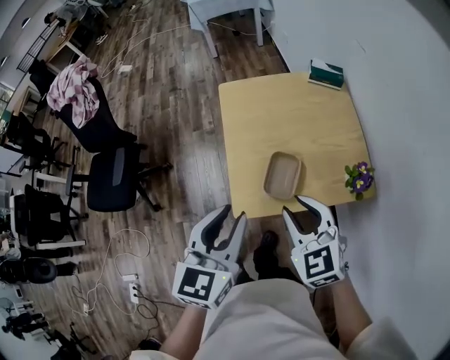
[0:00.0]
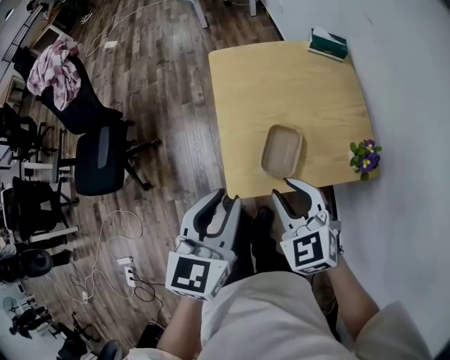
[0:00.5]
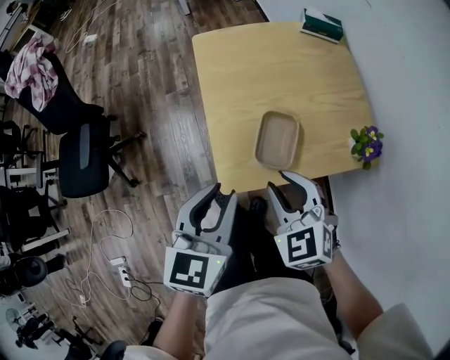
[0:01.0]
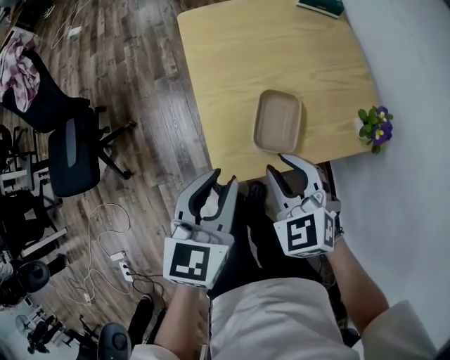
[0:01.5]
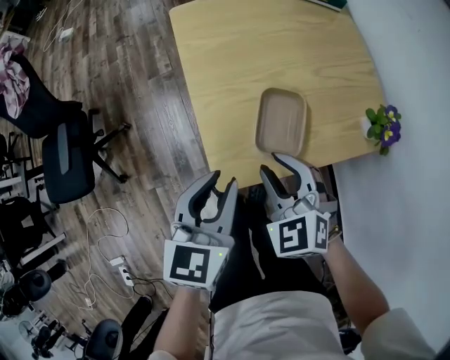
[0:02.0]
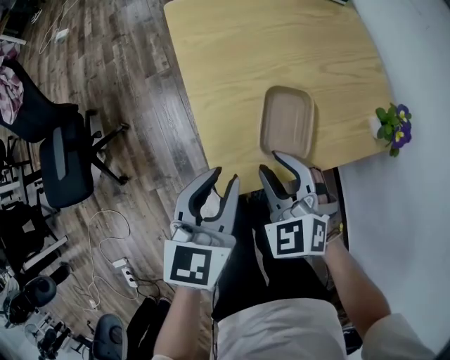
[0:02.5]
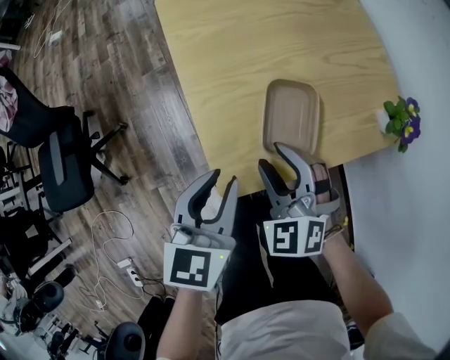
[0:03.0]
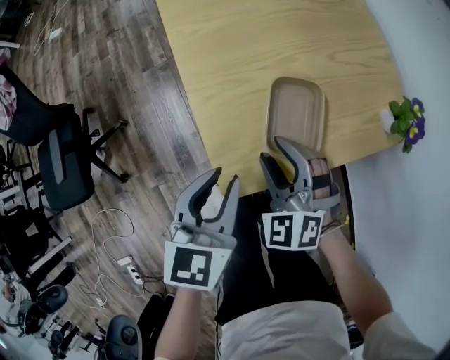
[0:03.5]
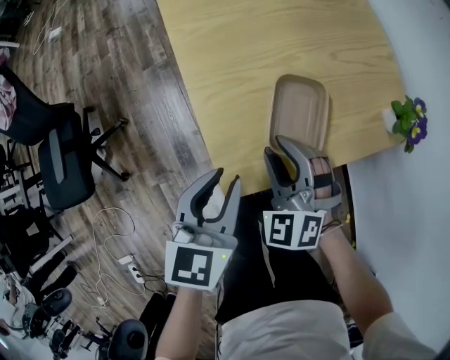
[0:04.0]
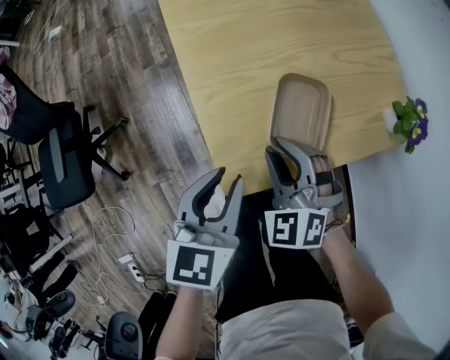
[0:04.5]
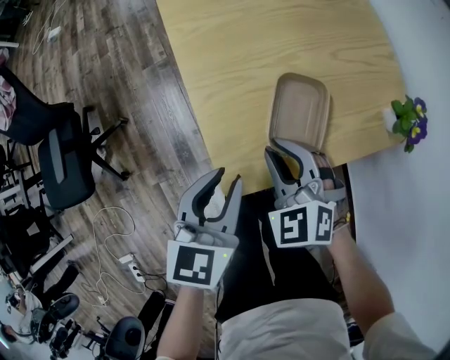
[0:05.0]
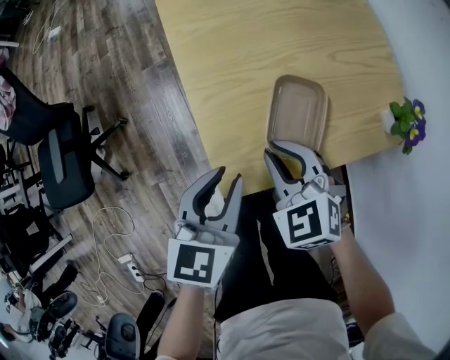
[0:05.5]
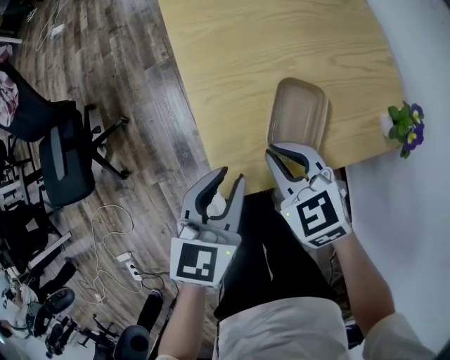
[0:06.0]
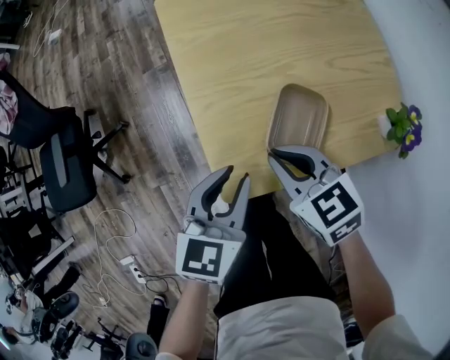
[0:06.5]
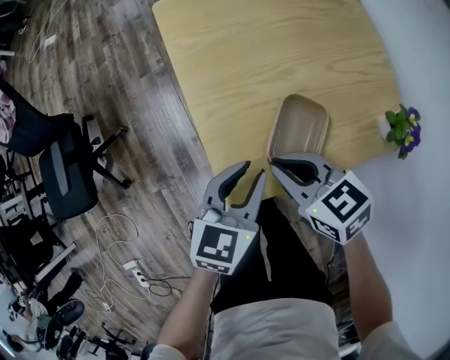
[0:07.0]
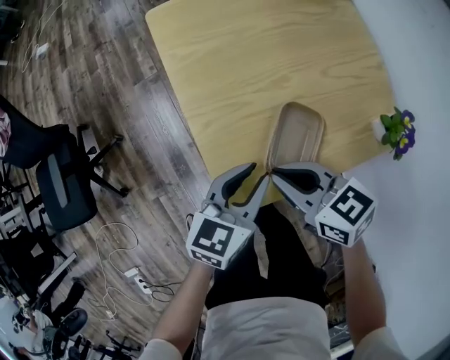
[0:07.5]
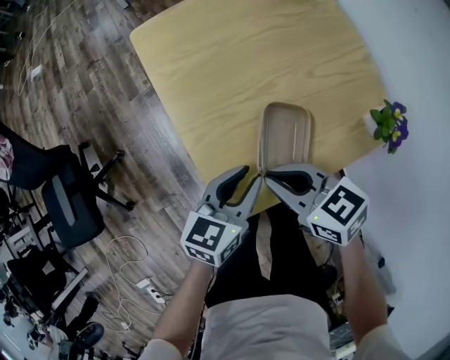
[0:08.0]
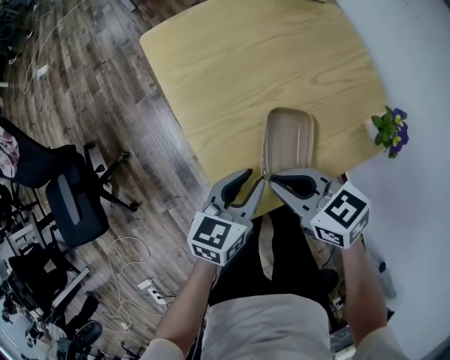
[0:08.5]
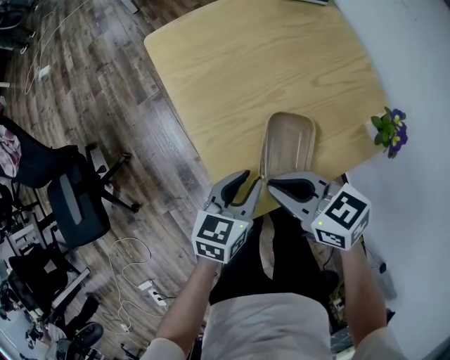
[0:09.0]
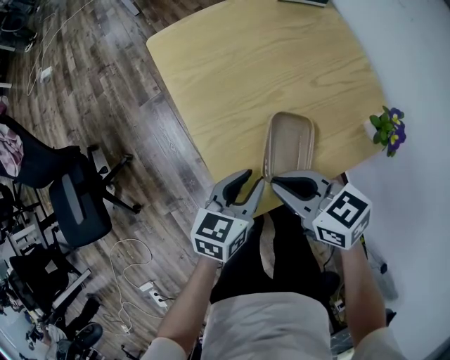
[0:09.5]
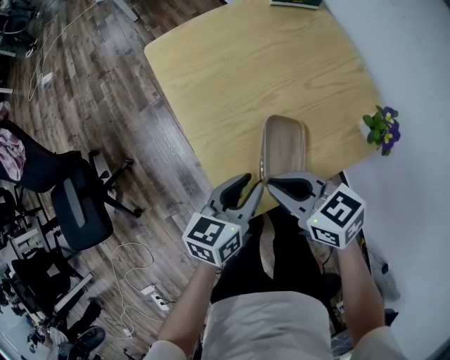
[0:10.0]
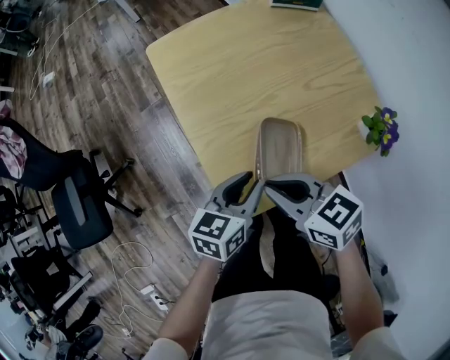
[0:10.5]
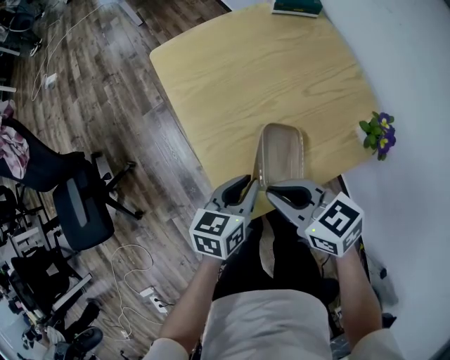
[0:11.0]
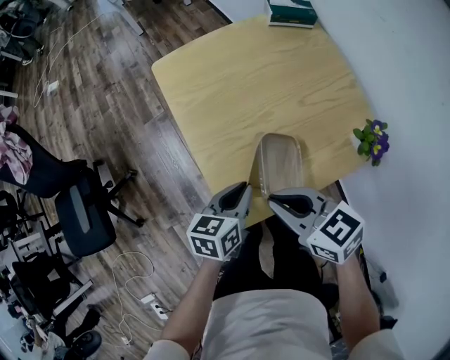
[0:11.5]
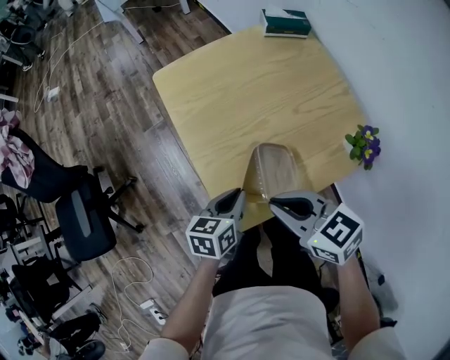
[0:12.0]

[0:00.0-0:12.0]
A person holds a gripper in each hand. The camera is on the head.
0:00.0 to 0:02.0: Both grippers move downward, approximately 20 cm.
0:02.0 to 0:04.0: Both grippers move downward, approximately 5 cm.
0:04.0 to 0:06.0: The right gripper swivels about 30 degrees, and closes up.
0:06.0 to 0:08.0: The right gripper swivels roughly 30 degrees. The left gripper is displaced to the right by some 5 cm, and turns by some 20 degrees.
0:08.0 to 0:10.0: The grippers move only a little.
0:10.0 to 0:12.0: The right gripper heads upward, covering about 5 cm.

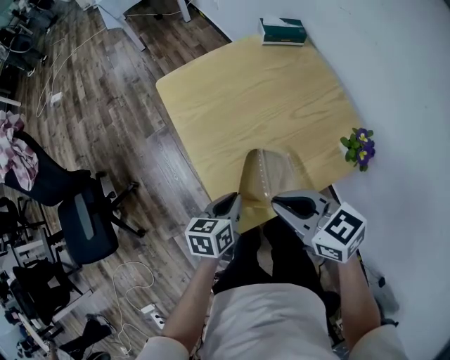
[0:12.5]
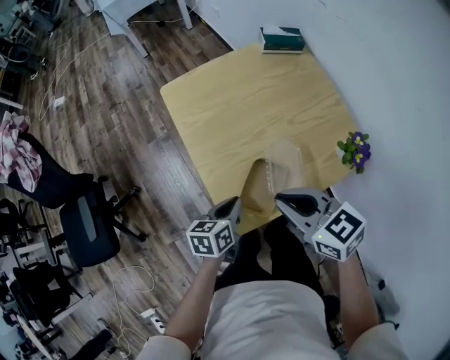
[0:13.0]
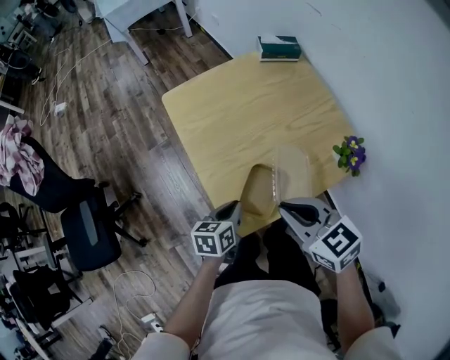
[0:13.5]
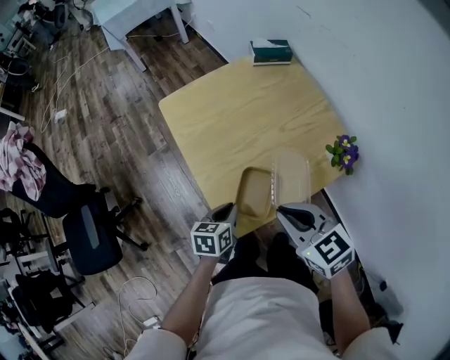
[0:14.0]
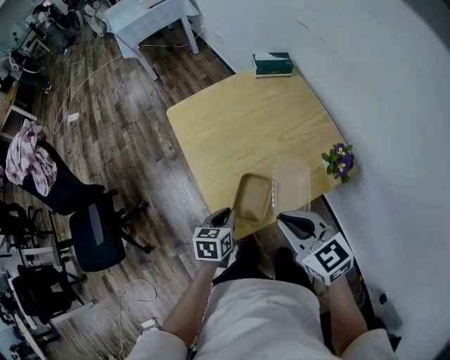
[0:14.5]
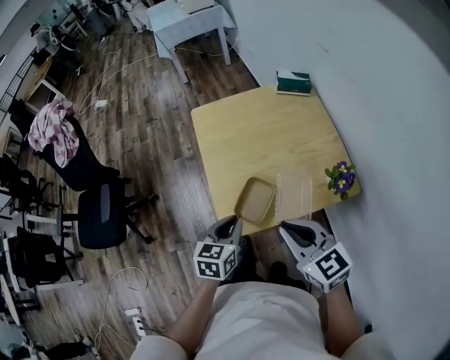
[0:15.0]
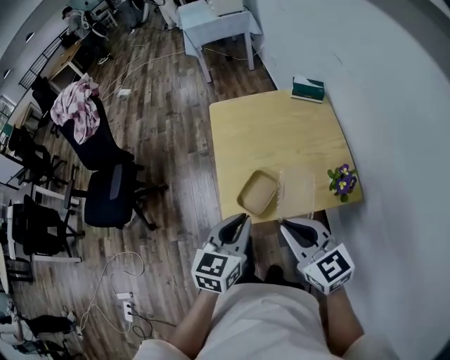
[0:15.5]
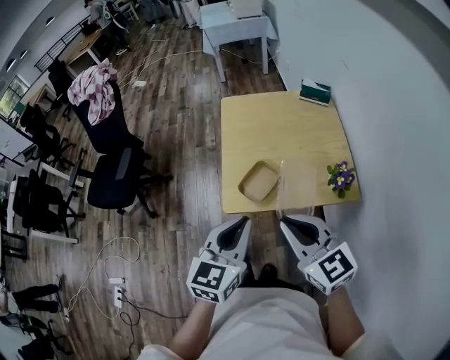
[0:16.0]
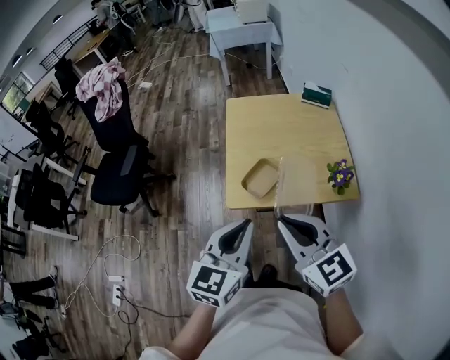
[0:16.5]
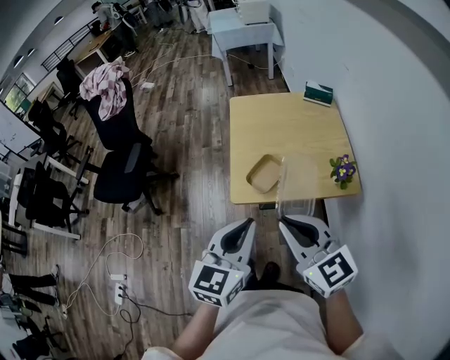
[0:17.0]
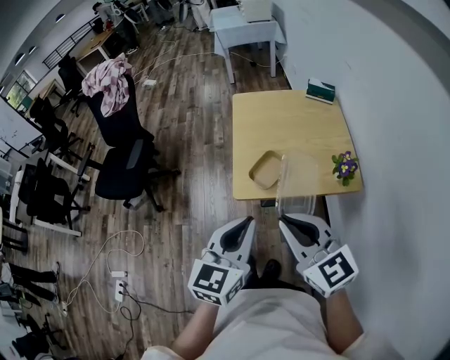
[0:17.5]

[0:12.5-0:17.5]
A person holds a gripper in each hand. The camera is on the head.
0:12.5 to 0:15.0: The left gripper is displaced upward and backward by roughly 10 cm. The right gripper moves upward, backward and to the right, about 10 cm.
0:15.0 to 0:17.5: The right gripper is displaced backward and upward by roughly 20 cm; the left gripper shifts roughly 25 cm backward and upward, and swivels approximately 30 degrees.

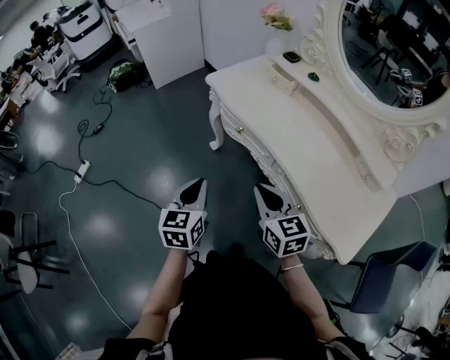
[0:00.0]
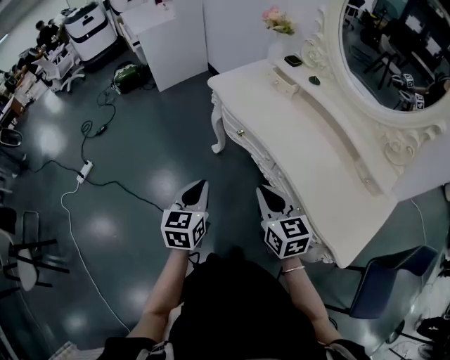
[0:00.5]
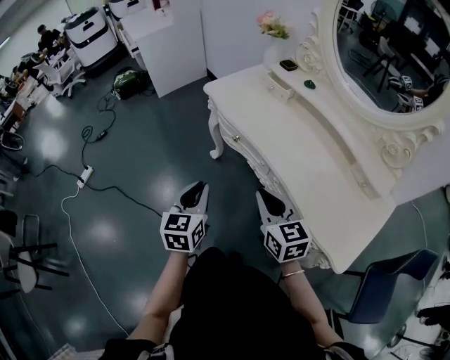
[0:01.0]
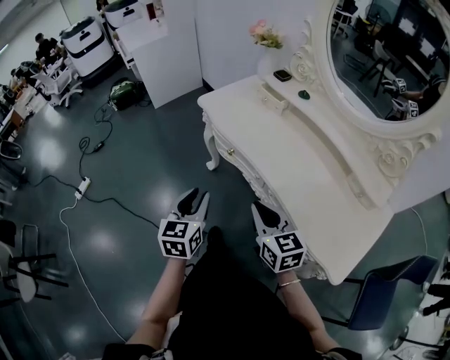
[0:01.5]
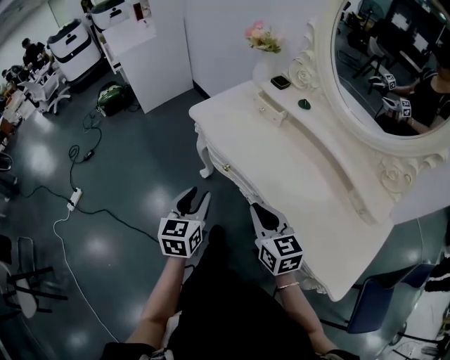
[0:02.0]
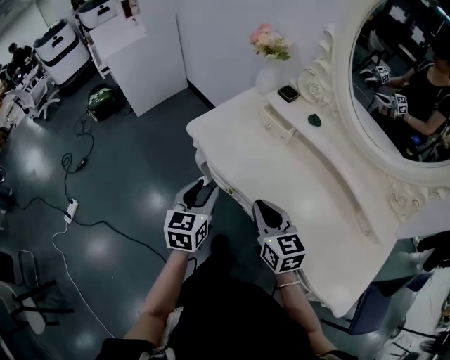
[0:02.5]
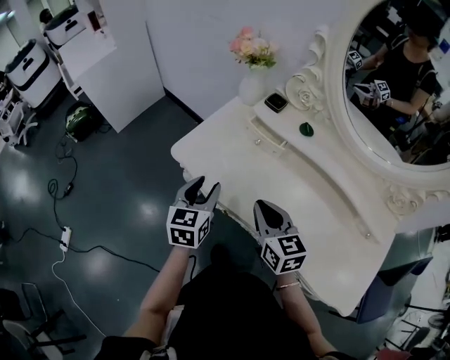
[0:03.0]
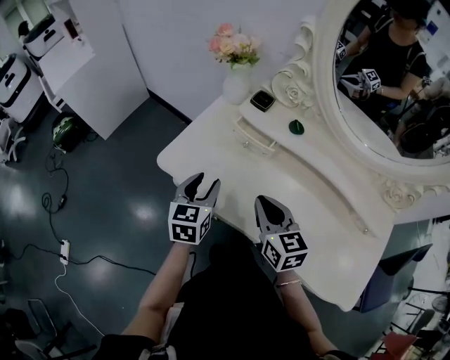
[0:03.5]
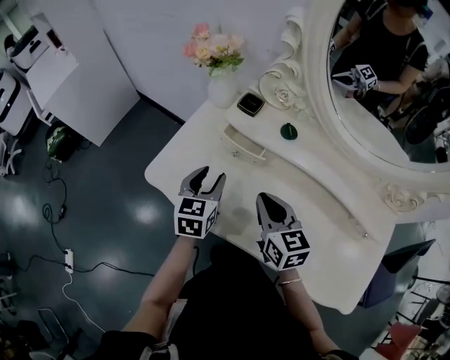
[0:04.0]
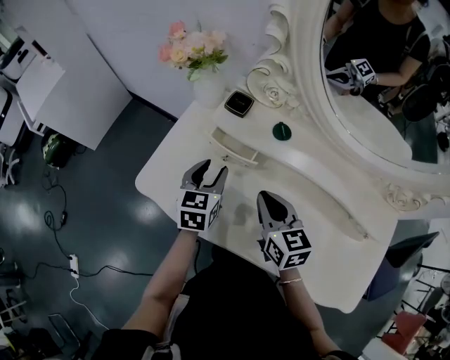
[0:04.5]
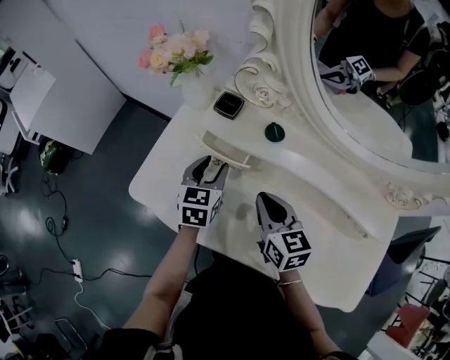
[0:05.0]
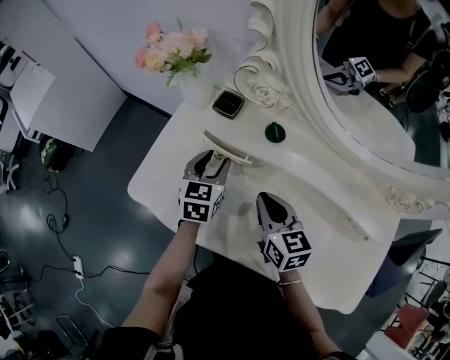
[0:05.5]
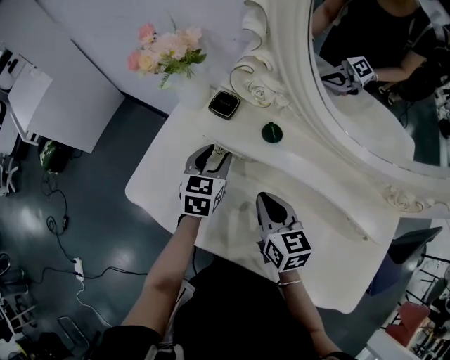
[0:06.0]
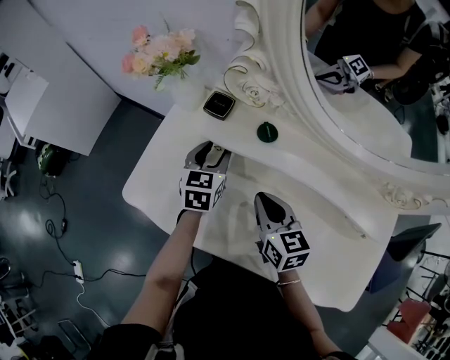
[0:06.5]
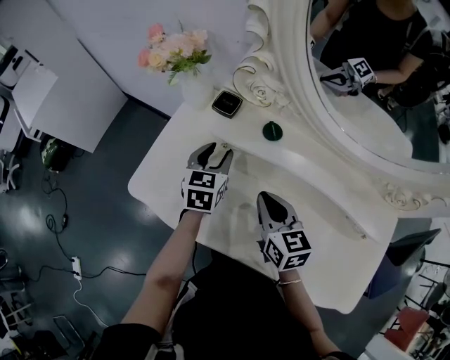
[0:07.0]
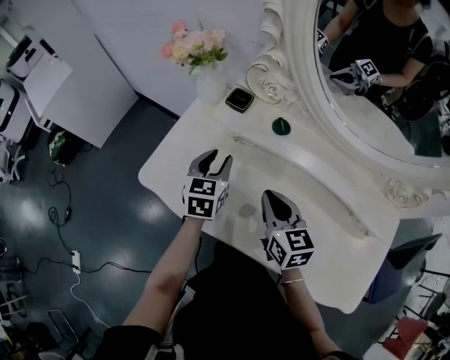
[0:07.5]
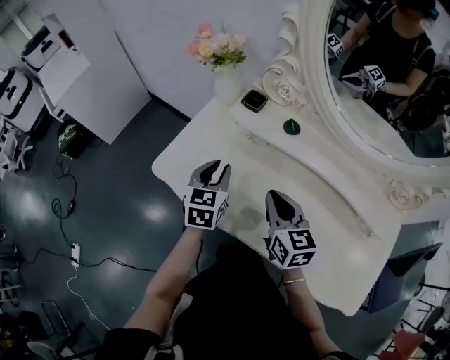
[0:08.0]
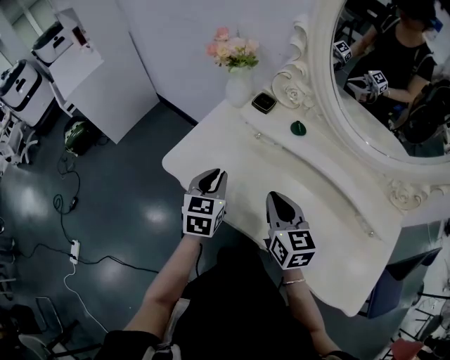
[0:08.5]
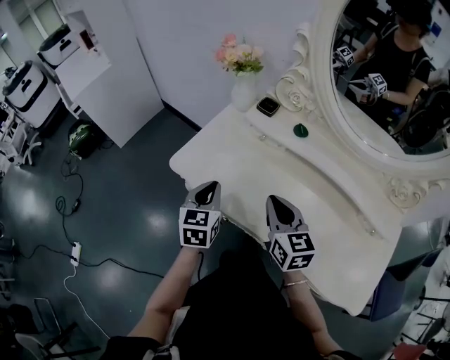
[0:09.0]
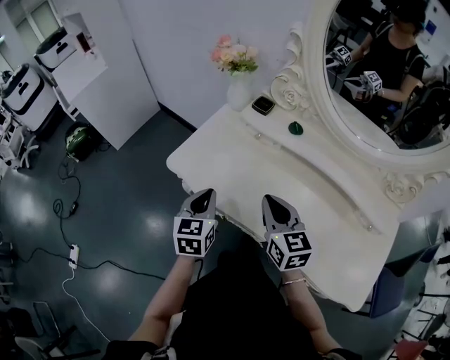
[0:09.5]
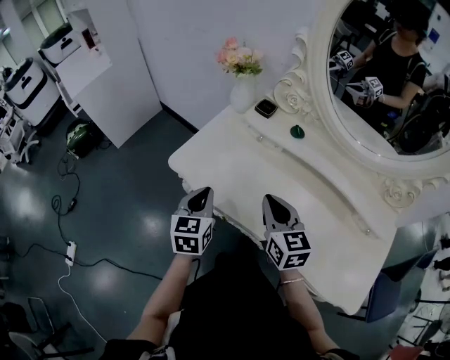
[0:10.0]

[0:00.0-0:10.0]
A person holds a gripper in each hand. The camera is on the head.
0:00.0 to 0:02.0: The grippers both shift forward by about 10 cm. The left gripper opens.
0:02.0 to 0:04.0: Both grippers move forward, roughly 30 cm. The right gripper rotates approximately 20 degrees, while the left gripper rotates roughly 20 degrees.
0:04.0 to 0:06.0: The right gripper is displaced to the right by roughly 5 cm. The left gripper travels forward and to the right by about 15 cm.
0:06.0 to 0:08.0: The left gripper is displaced backward and to the left by roughly 10 cm. Meanwhile the right gripper travels backward by some 5 cm.
0:08.0 to 0:10.0: The right gripper goes about 5 cm backward, while the left gripper heads backward and to the left, covering roughly 15 cm, and closes up.
